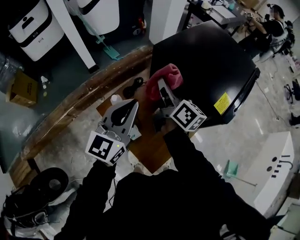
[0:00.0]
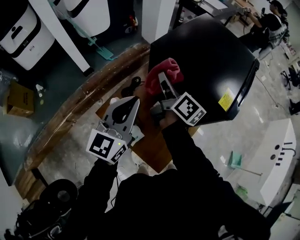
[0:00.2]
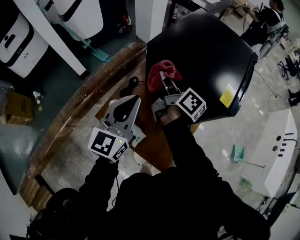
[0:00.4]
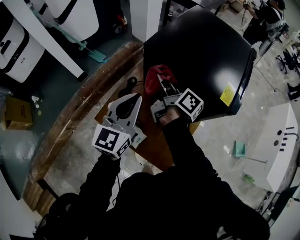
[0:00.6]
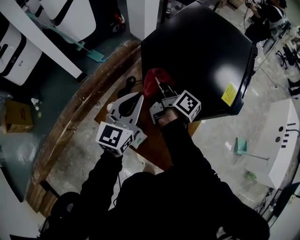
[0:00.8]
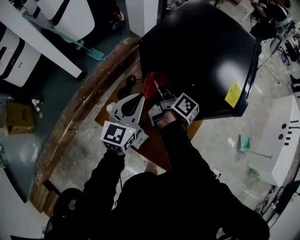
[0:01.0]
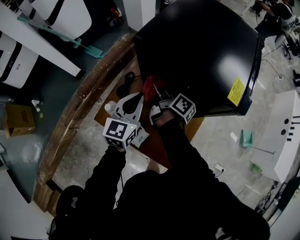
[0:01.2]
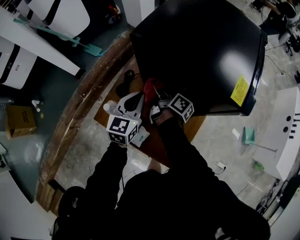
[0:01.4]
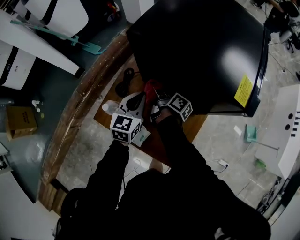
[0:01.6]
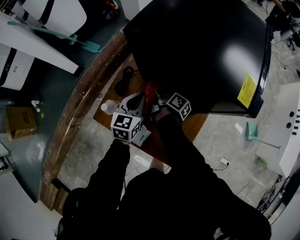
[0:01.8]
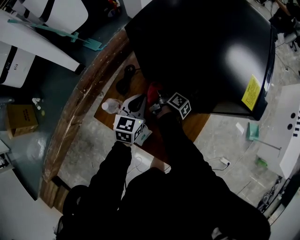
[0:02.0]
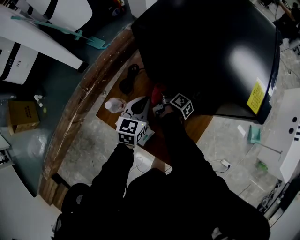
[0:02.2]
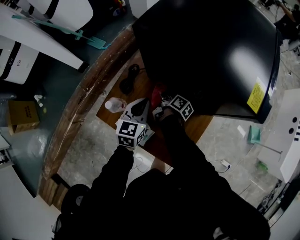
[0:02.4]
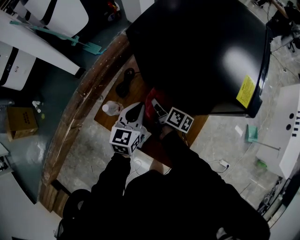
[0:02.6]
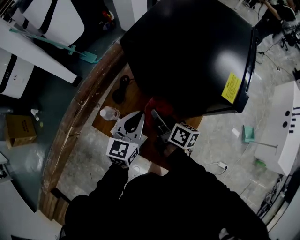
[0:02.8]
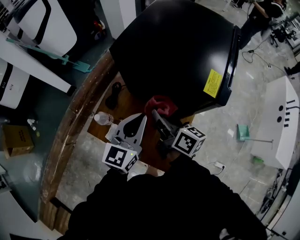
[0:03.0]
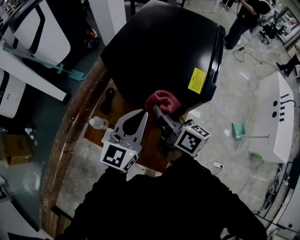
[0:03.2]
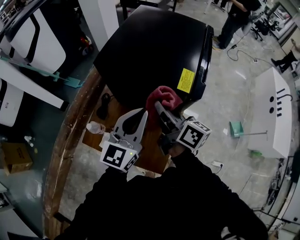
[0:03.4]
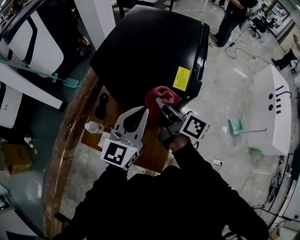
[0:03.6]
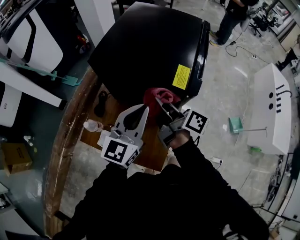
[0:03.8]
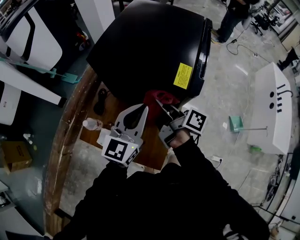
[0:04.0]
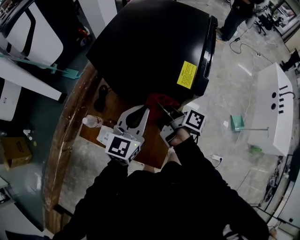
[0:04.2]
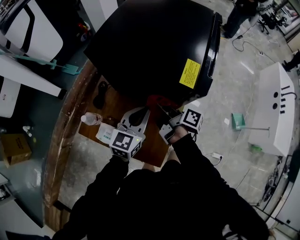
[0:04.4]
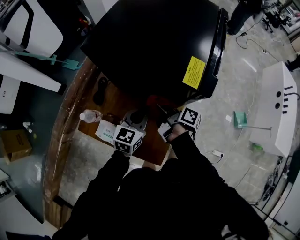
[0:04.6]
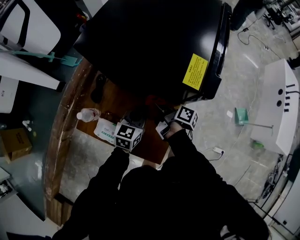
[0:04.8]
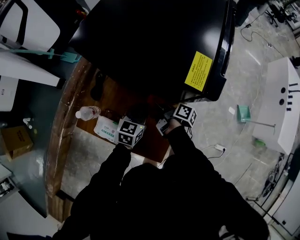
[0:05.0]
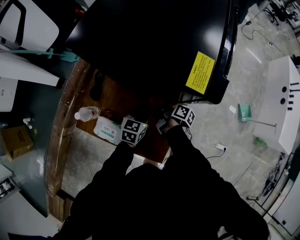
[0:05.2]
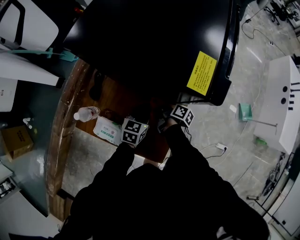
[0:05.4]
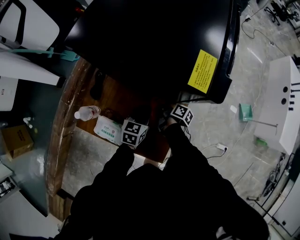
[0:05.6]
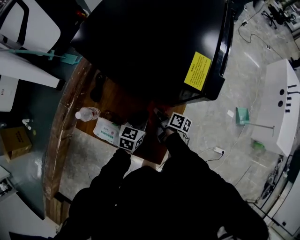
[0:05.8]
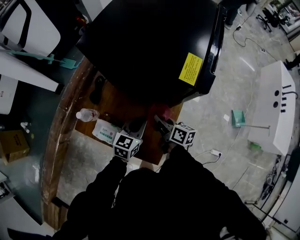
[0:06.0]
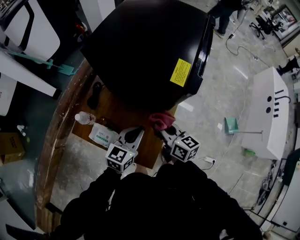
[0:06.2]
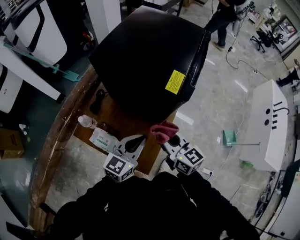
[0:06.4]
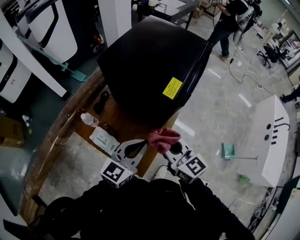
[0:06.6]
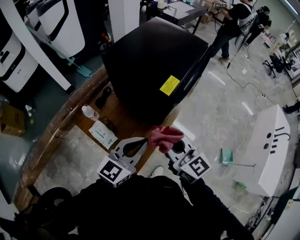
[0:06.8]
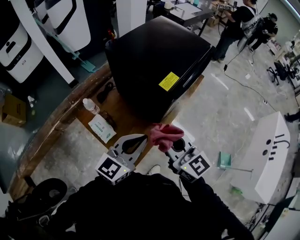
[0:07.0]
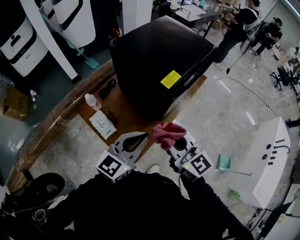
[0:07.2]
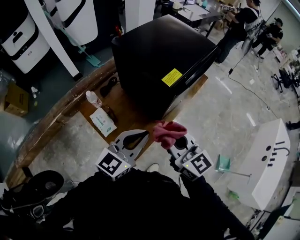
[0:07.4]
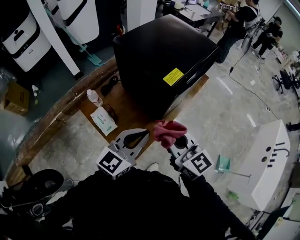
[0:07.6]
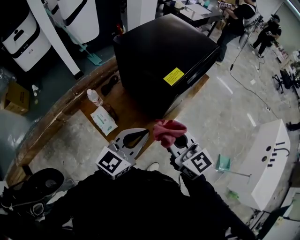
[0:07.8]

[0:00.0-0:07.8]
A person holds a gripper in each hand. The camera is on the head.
0.0 to 1.6 s: The left gripper shifts some 30 cm downward and forward, and turns by approximately 30 degrees, while the right gripper is displaced downward by some 30 cm, and changes its angle by some 50 degrees.
1.6 to 3.2 s: The right gripper heads upward and backward, covering approximately 30 cm, and swivels some 40 degrees; the left gripper is displaced upward, to the right and backward by some 25 cm, and changes its angle by some 20 degrees.
3.2 to 4.6 s: Both grippers move downward, approximately 20 cm. The right gripper rotates around the line of its fingers by roughly 40 degrees, clockwise from behind. Meanwhile the left gripper rotates roughly 20 degrees.
4.6 to 6.2 s: The grippers both shift backward by about 10 cm. The left gripper travels downward and back again, approximately 15 cm each way. The right gripper moves about 20 cm downward and comes back, and rolls counterclockwise, seen from behind, by roughly 50 degrees.
6.2 to 7.8 s: Both grippers travel together upward and backward, approximately 20 cm. The right gripper turns by some 40 degrees.

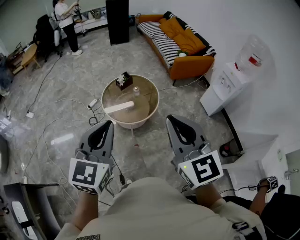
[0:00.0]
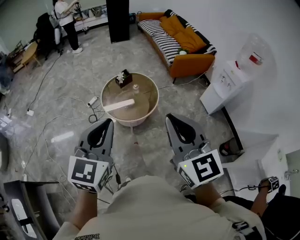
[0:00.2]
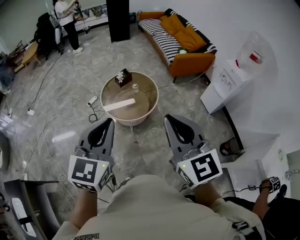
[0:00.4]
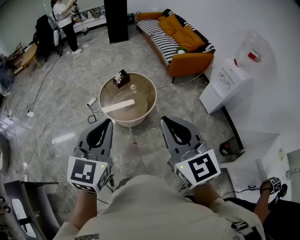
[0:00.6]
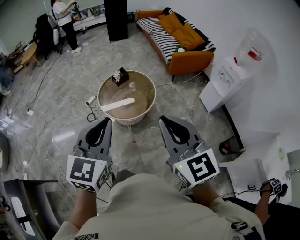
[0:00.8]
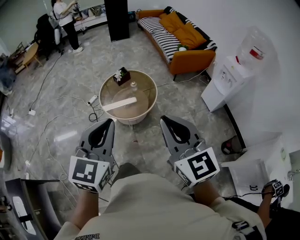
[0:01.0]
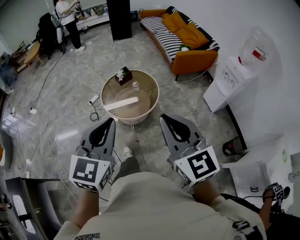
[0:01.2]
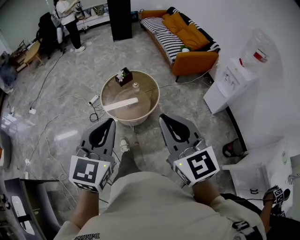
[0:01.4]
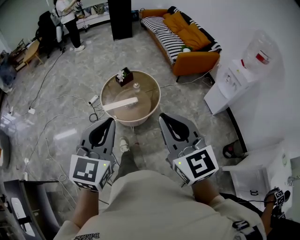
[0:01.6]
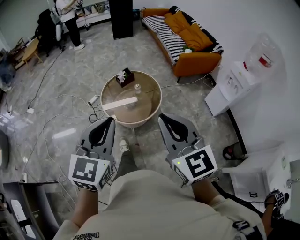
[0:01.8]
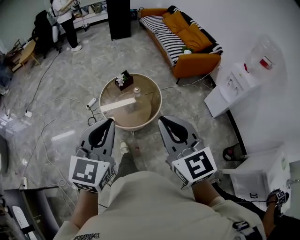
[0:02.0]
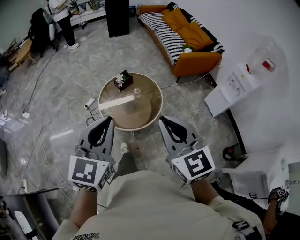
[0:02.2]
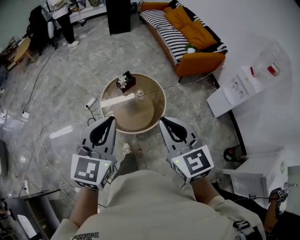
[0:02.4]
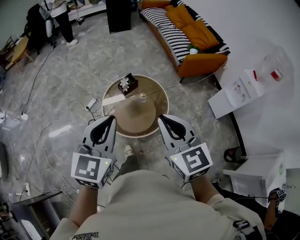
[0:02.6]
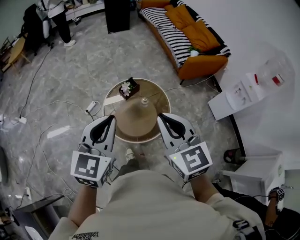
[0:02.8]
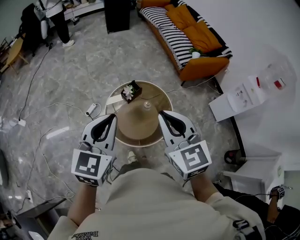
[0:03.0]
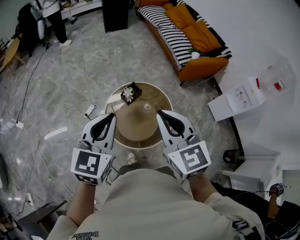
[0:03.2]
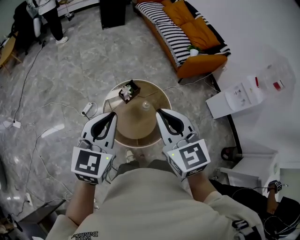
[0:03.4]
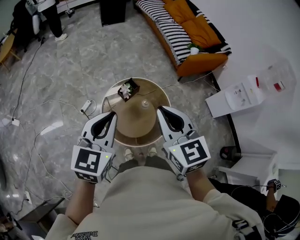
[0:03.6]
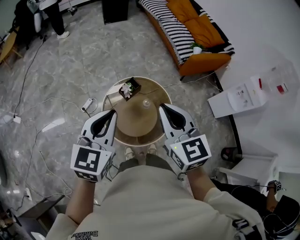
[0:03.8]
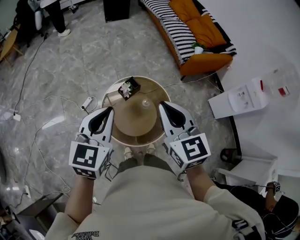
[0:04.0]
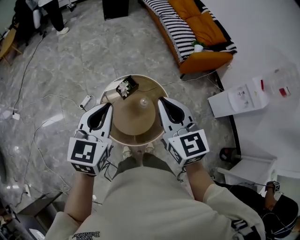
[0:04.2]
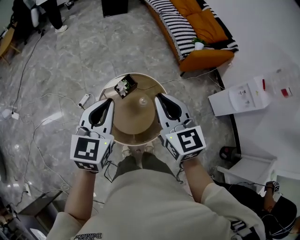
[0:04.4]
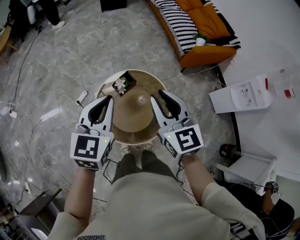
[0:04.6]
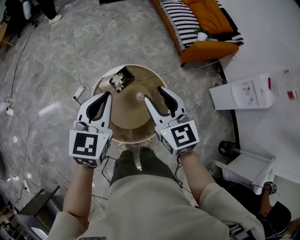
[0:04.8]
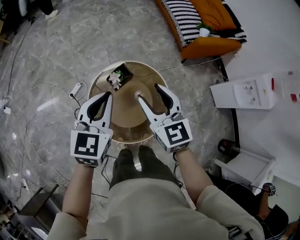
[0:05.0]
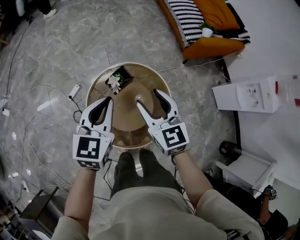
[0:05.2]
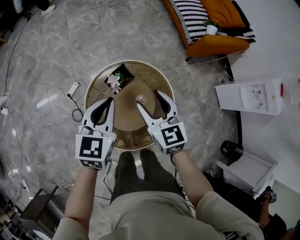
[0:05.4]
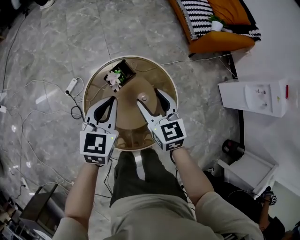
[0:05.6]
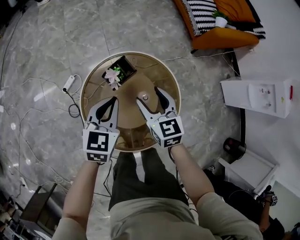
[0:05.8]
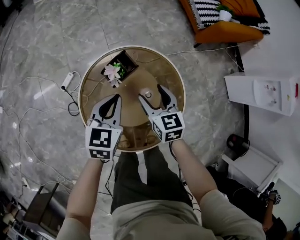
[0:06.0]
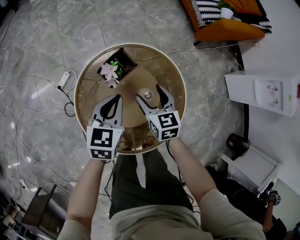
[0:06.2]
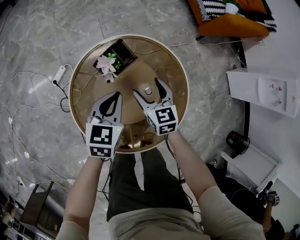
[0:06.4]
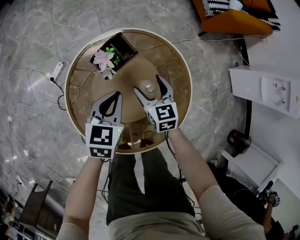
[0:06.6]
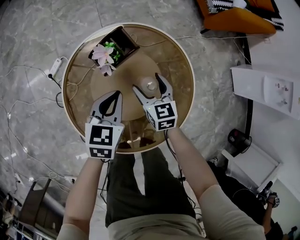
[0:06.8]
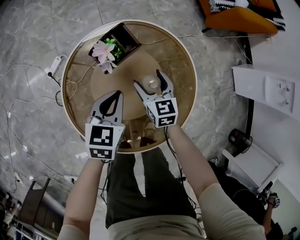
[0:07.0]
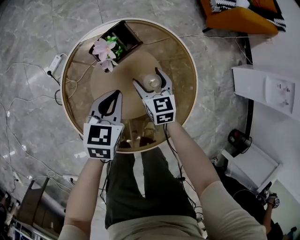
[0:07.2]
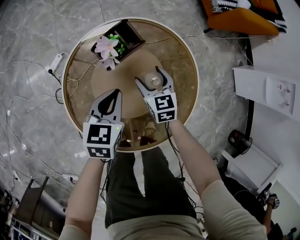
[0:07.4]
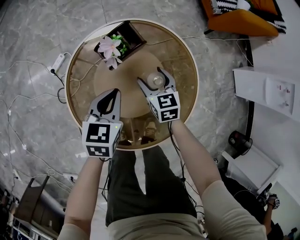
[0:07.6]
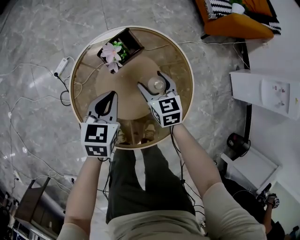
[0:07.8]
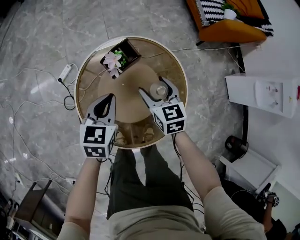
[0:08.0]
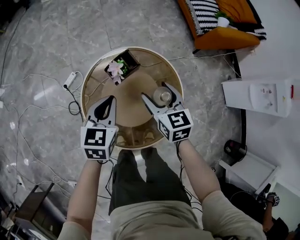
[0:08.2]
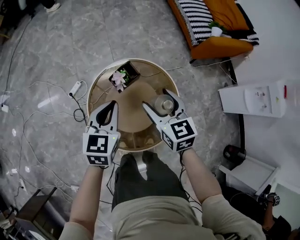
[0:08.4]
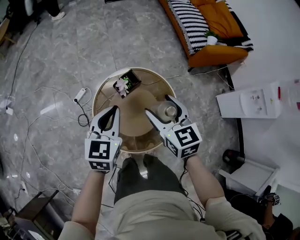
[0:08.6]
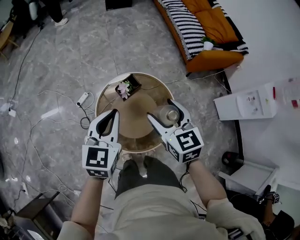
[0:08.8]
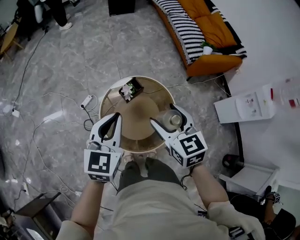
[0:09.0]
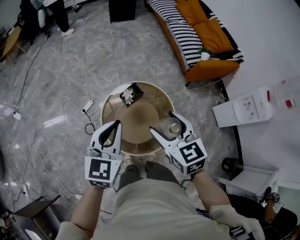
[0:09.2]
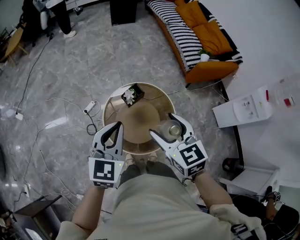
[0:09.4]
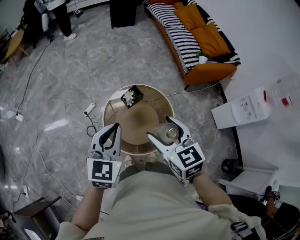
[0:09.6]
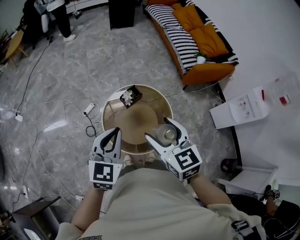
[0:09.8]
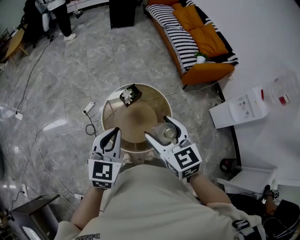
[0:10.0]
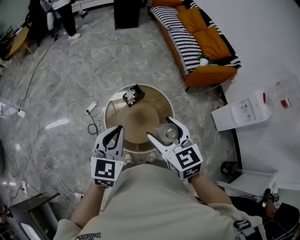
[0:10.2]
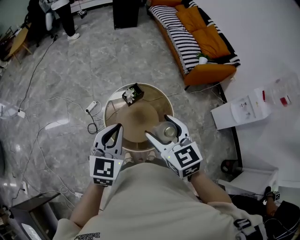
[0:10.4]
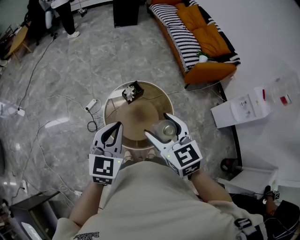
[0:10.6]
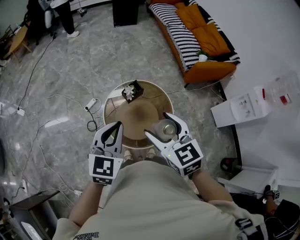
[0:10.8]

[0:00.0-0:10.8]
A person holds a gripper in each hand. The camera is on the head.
0.0 to 1.6 s: The left gripper ends up some 5 cm from where it was. Meanwhile the right gripper heads downward, covering roughly 5 cm.
1.6 to 3.0 s: The grippers both shift forward by roughly 35 cm.
3.0 to 4.6 s: Both grippers move forward and downward, about 20 cm.
4.6 to 6.2 s: The grippers both shift downward by approximately 40 cm. The right gripper changes its angle by roughly 20 degrees, and opens up.
6.2 to 7.8 s: The grippers both shift downward by some 5 cm.
7.8 to 9.2 s: The grippers both shift upward by some 50 cm. The left gripper changes its angle by approximately 20 degrees.
9.2 to 10.8 s: The right gripper heads backward and upward, covering roughly 10 cm, while the left gripper shifts about 10 cm backward.

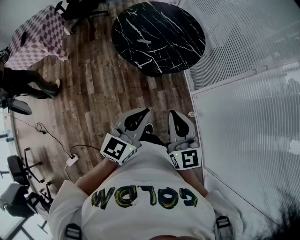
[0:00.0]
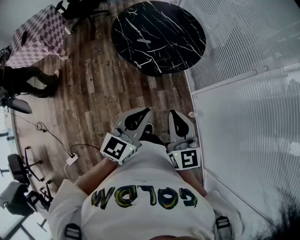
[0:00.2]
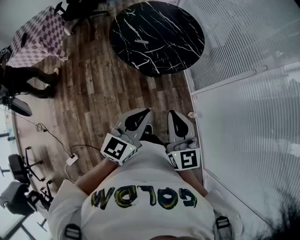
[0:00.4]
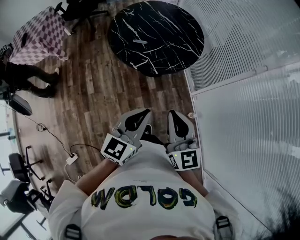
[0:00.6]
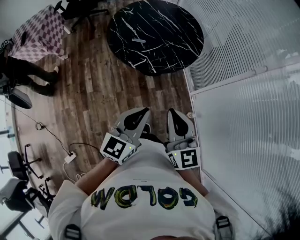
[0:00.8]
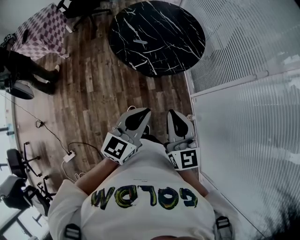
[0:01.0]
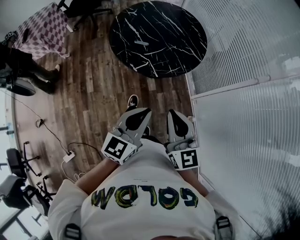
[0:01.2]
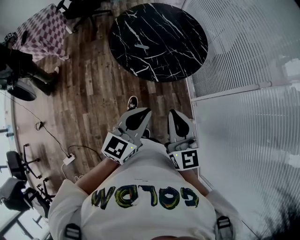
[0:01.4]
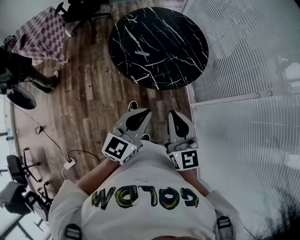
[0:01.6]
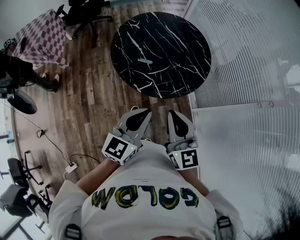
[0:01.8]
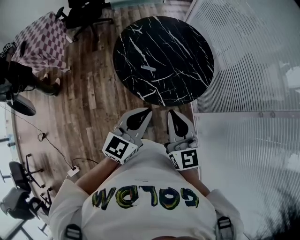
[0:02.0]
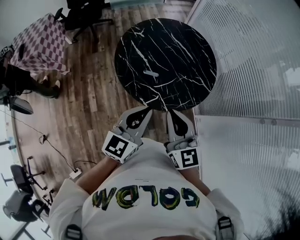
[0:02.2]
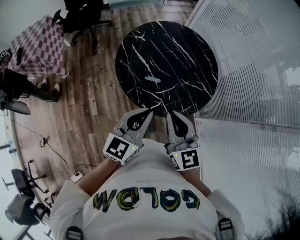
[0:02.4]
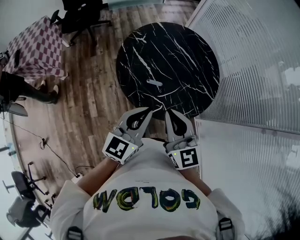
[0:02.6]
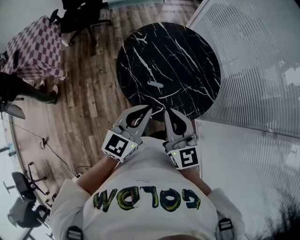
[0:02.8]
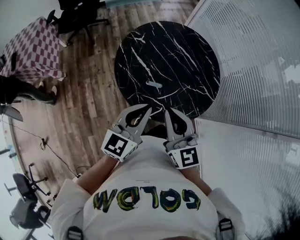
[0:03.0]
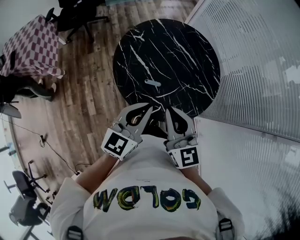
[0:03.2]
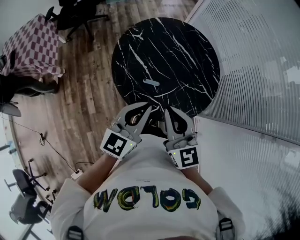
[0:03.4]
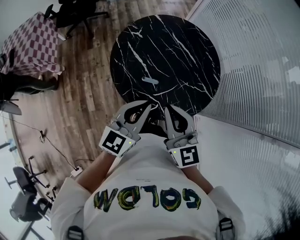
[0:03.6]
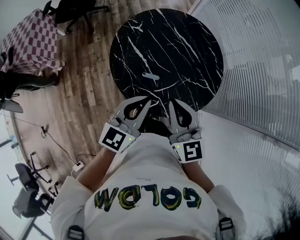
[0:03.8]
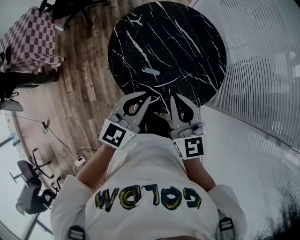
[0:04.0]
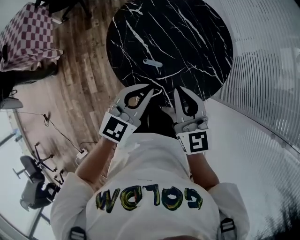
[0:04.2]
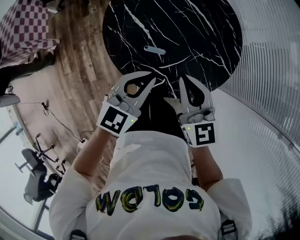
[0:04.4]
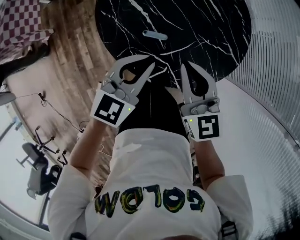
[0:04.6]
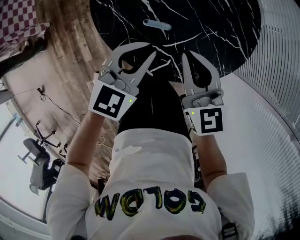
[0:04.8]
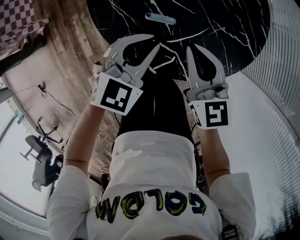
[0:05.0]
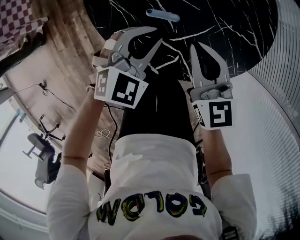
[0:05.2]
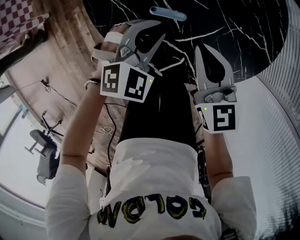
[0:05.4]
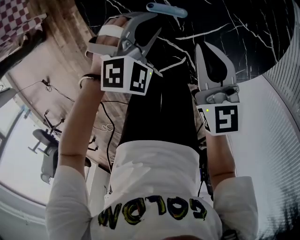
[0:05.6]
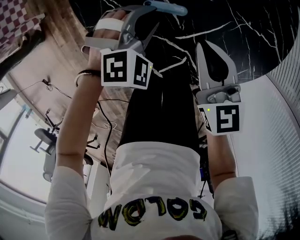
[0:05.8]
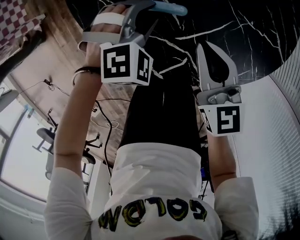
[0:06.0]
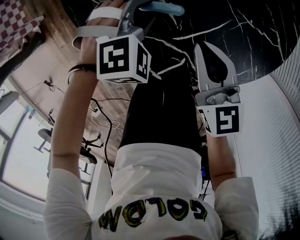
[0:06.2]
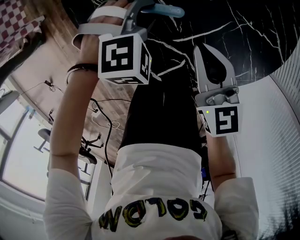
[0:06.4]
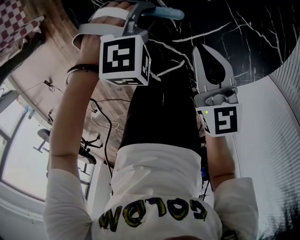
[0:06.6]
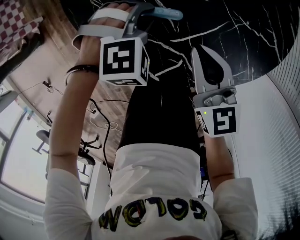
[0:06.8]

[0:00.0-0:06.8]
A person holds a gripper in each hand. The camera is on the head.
0.0 to 1.4 s: Both grippers move forward, approximately 10 cm.
1.4 to 2.8 s: The two grippers go roughly 35 cm forward and to the left.
2.8 to 4.0 s: The right gripper travels forward and to the right by approximately 10 cm, while the left gripper shifts some 5 cm forward.
4.0 to 5.4 s: Both grippers move downward, some 30 cm. The left gripper points its fingers roughly 30 degrees further downward.
5.4 to 6.8 s: The two grippers go about 5 cm downward. The left gripper rotates about 30 degrees.
